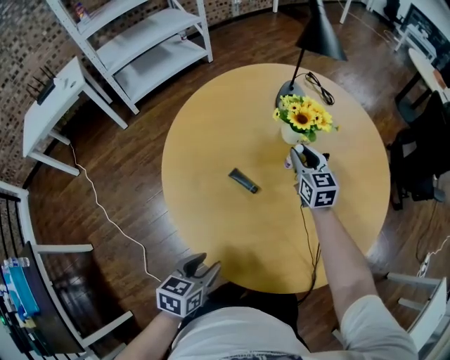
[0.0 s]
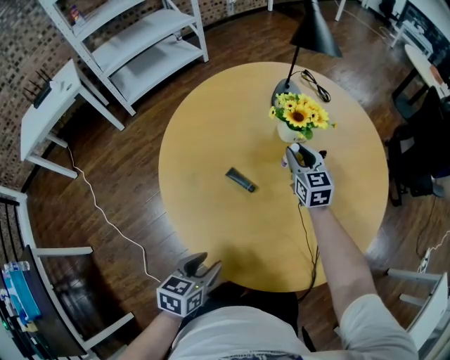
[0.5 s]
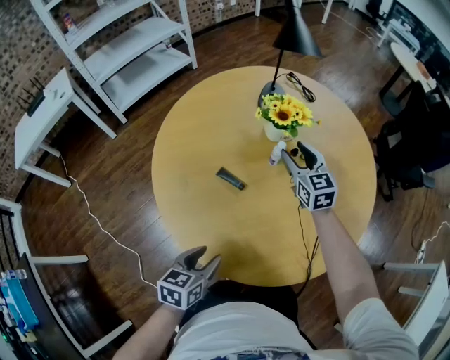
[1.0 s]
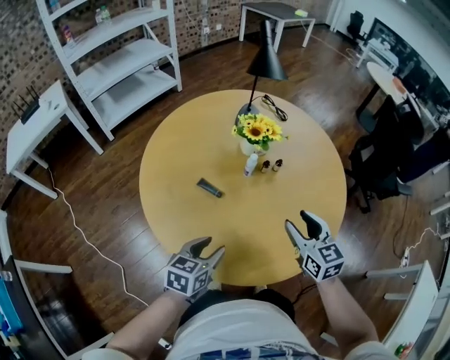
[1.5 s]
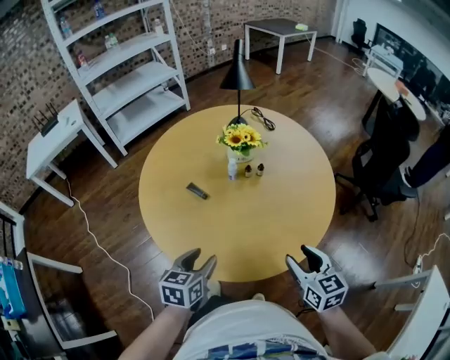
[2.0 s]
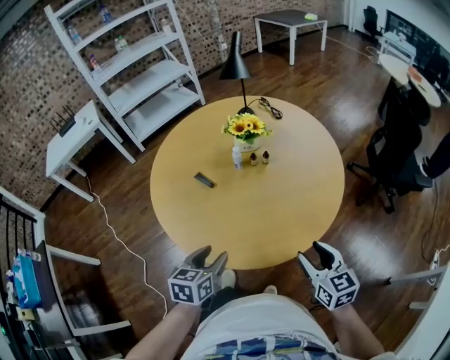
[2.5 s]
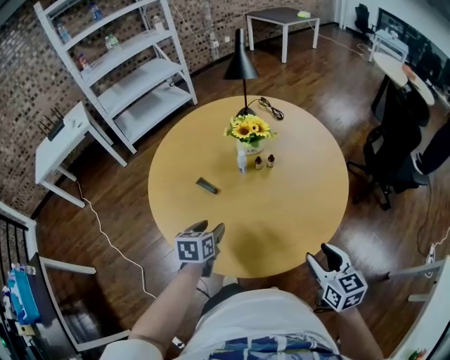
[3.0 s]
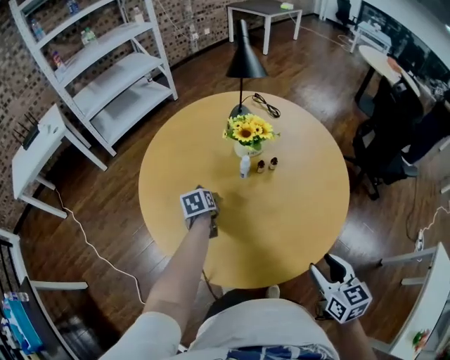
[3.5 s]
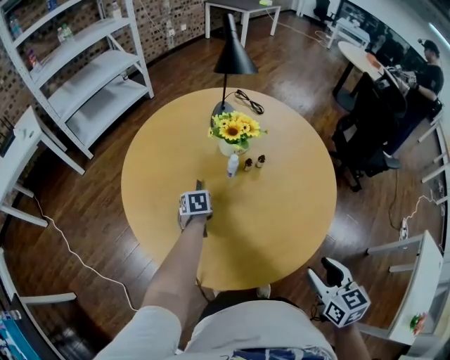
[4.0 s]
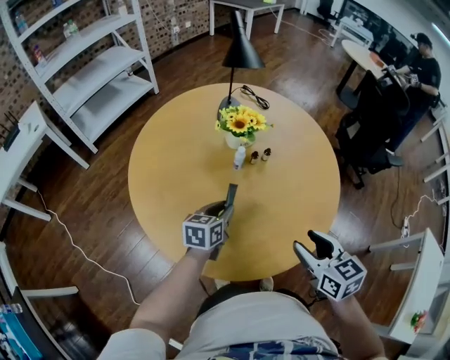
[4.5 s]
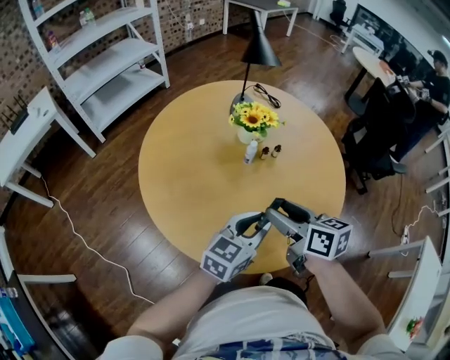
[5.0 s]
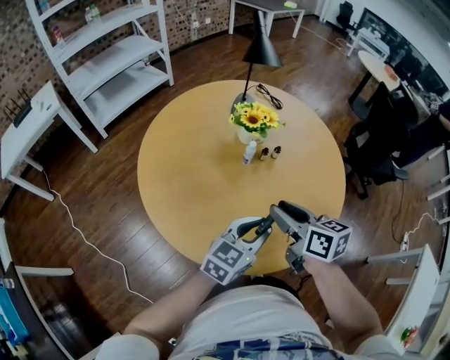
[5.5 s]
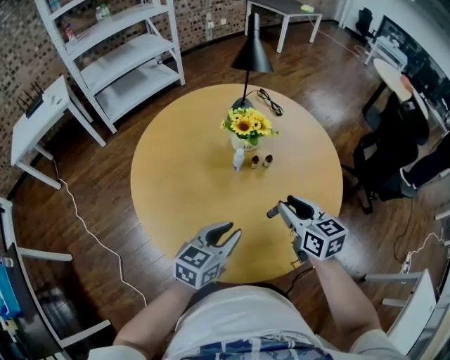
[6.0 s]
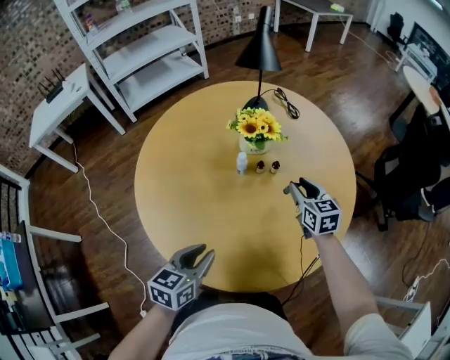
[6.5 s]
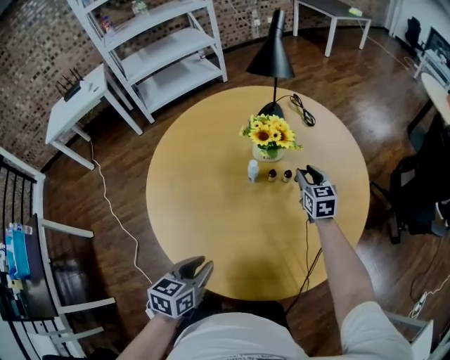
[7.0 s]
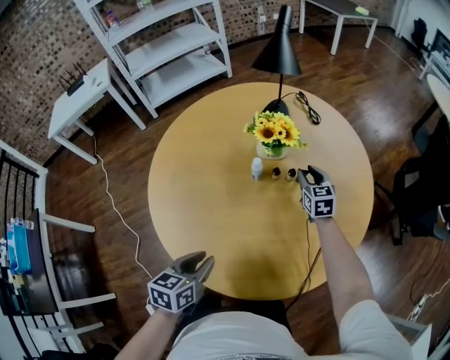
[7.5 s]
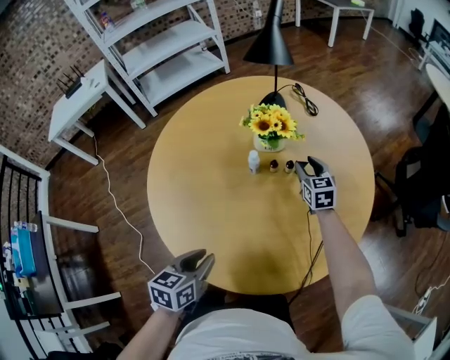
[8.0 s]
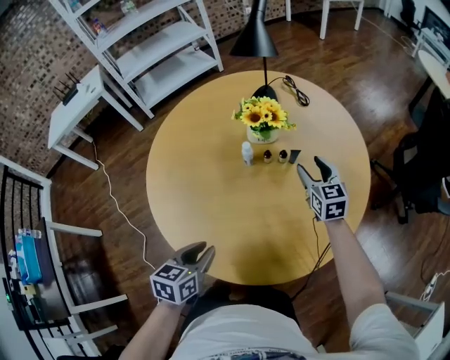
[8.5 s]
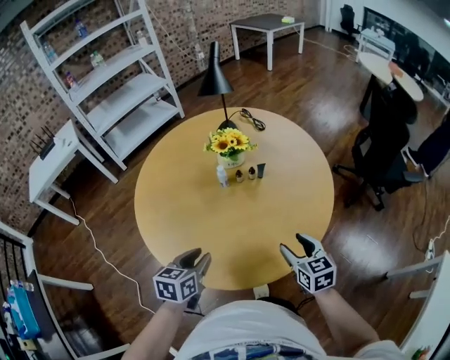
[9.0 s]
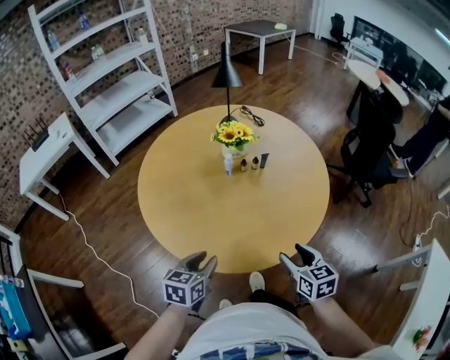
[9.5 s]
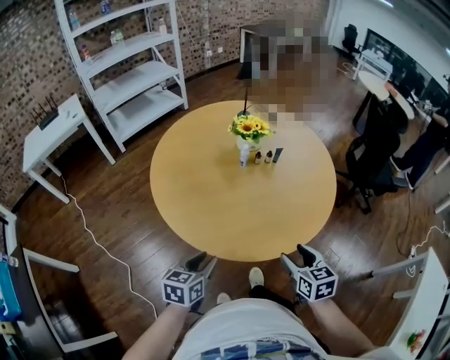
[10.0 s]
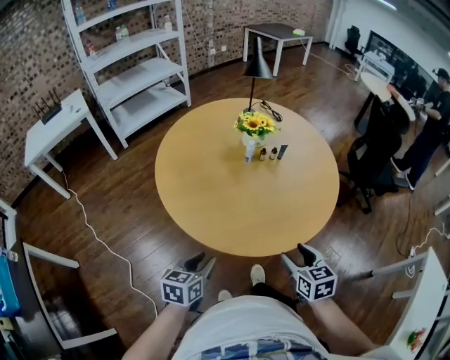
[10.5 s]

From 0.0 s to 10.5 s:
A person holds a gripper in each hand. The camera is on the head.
From 0.0 s to 2.0 s: The right gripper travels backward and to the right by some 50 cm, and opens, while the left gripper heads to the right and upward, covering roughly 20 cm.
From 2.0 s to 4.0 s: The right gripper shifts about 5 cm to the left, while the left gripper is displaced forward and downward by roughly 35 cm, changes its angle by some 20 degrees, and closes.
From 4.0 s to 6.5 s: The right gripper is displaced forward by about 35 cm, and swivels some 20 degrees; the left gripper goes about 30 cm backward, upward and to the right, and changes its angle by approximately 30 degrees.
From 6.5 s to 8.5 s: The right gripper reaches approximately 10 cm forward, then returns, and opens its fingers.
From 8.5 s to 10.5 s: The left gripper shifts roughly 25 cm backward and to the left; the right gripper shifts about 50 cm backward.

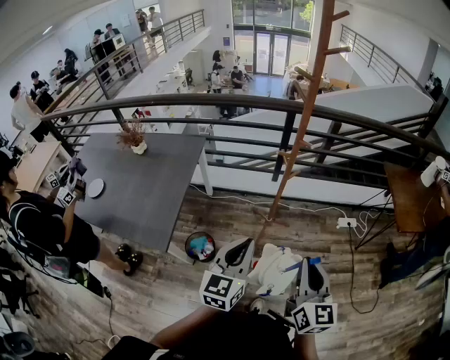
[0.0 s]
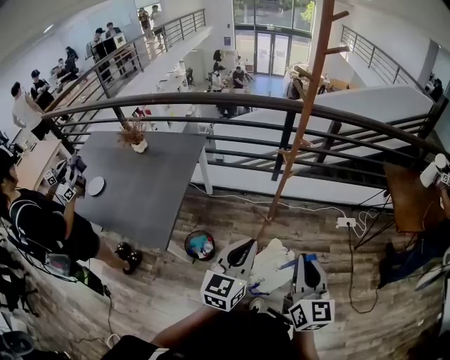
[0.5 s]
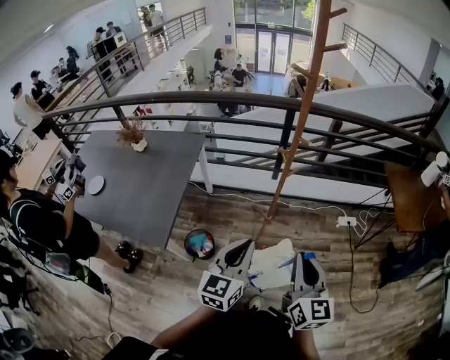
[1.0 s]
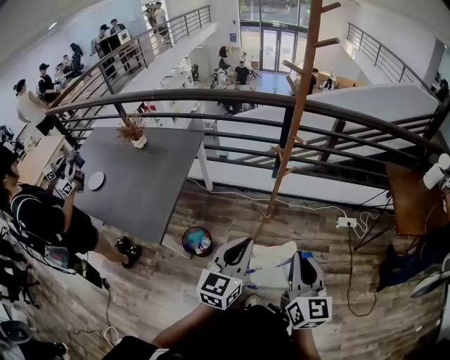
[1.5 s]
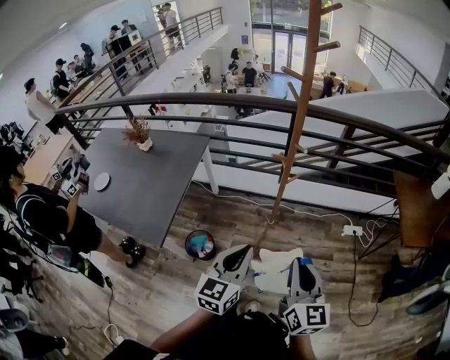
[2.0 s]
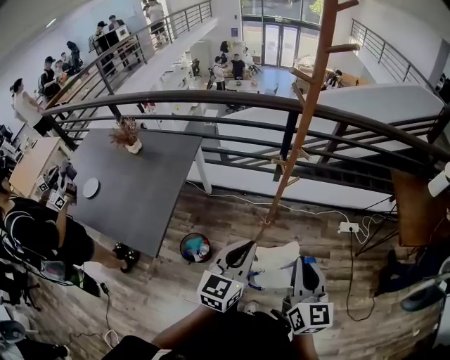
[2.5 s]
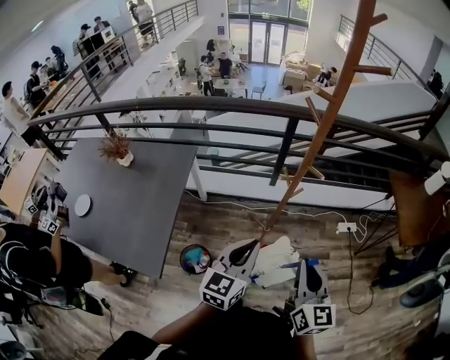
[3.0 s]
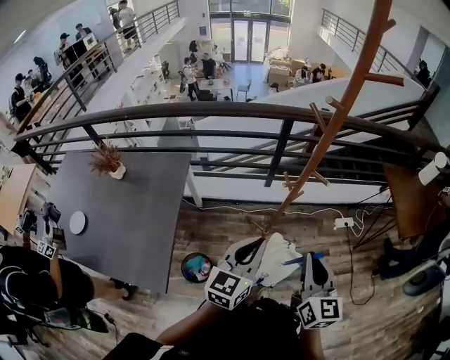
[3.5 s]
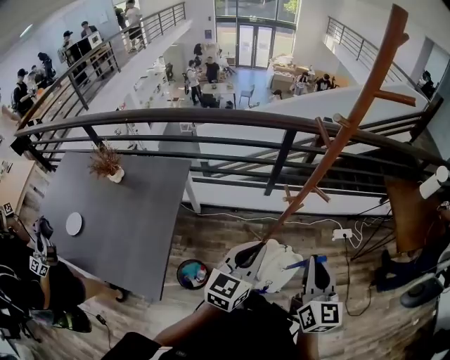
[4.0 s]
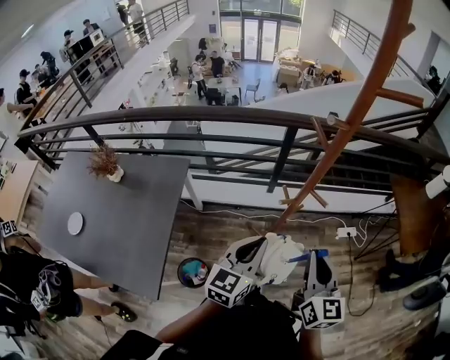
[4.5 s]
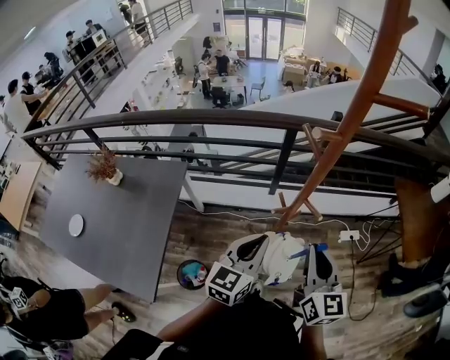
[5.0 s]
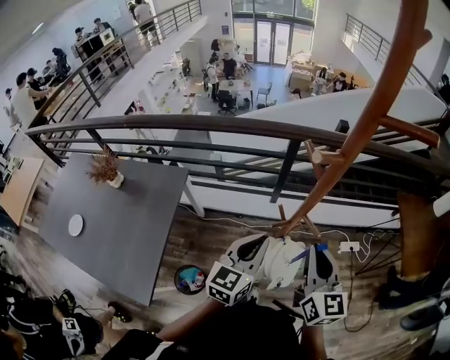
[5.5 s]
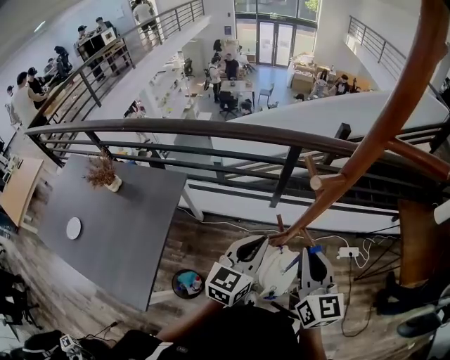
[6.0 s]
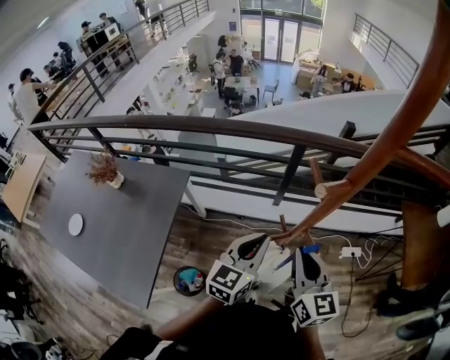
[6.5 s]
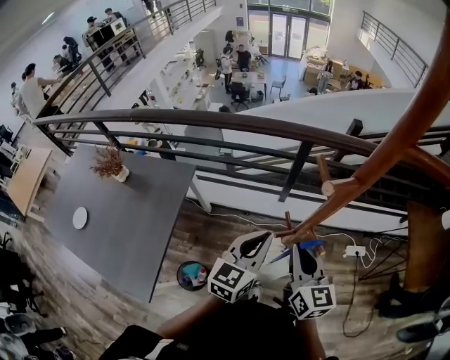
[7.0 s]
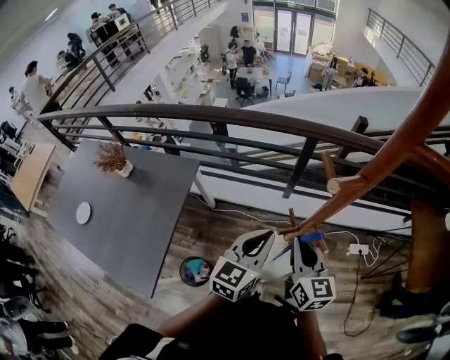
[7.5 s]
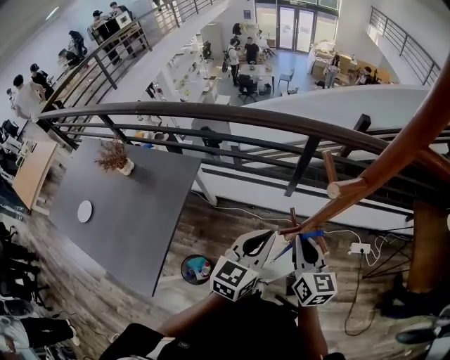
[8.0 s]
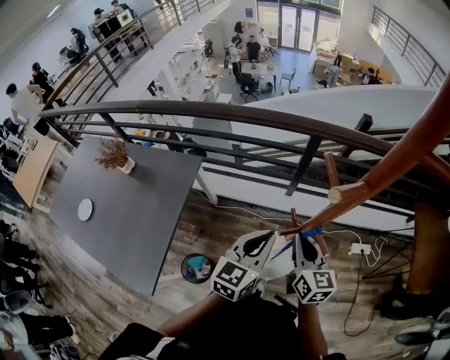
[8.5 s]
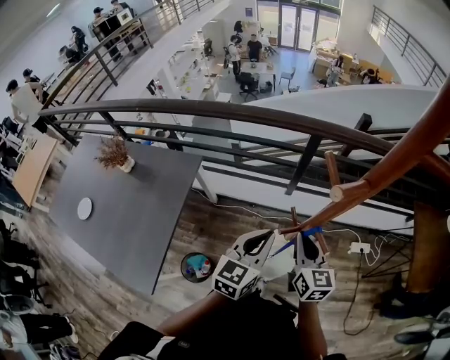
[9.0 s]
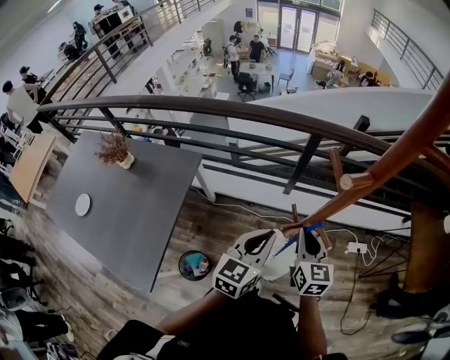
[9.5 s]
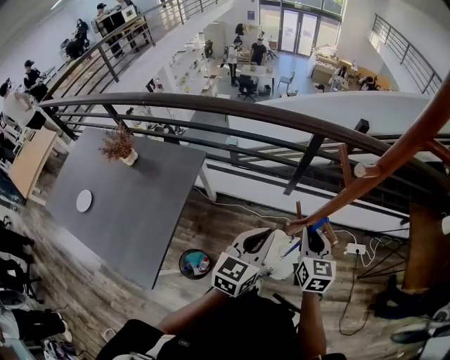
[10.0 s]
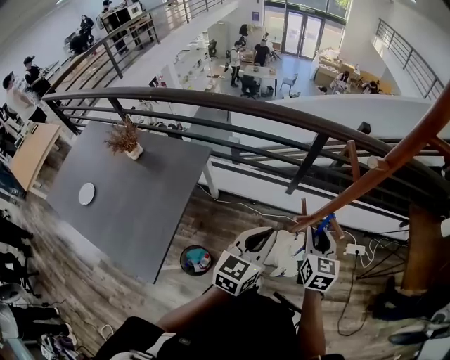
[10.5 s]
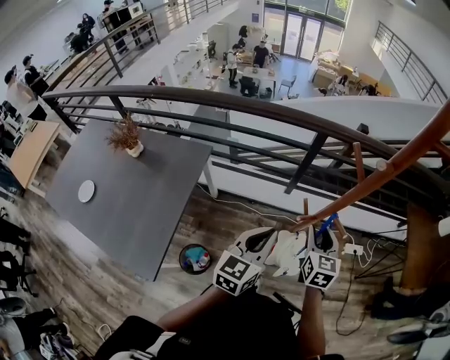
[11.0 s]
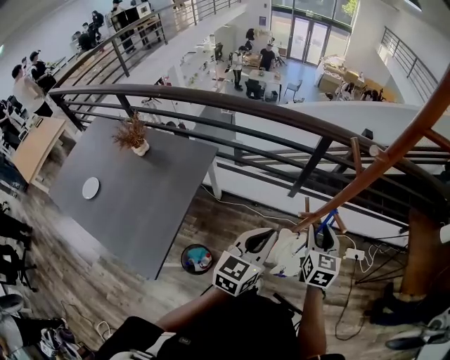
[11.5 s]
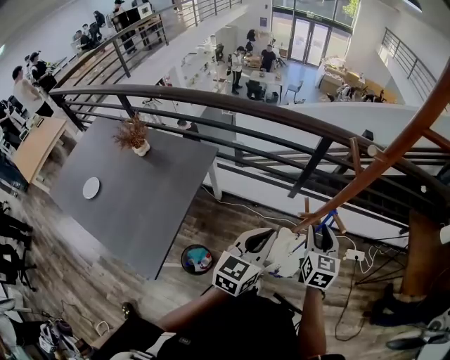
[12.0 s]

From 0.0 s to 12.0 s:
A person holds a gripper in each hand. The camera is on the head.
From 0.0 s to 2.0 s: The right gripper changes place by about 5 cm; the left gripper moves to the right, approximately 5 cm.
From 2.0 s to 4.0 s: The two grippers go about 20 cm forward and to the left.
From 4.0 s to 6.0 s: Both grippers move forward, about 15 cm.
From 6.0 s to 8.0 s: The right gripper heads downward, covering roughly 10 cm.
From 8.0 s to 10.0 s: The grippers stay close to where they were, moving slightly.
From 10.0 s to 12.0 s: The right gripper opens up.

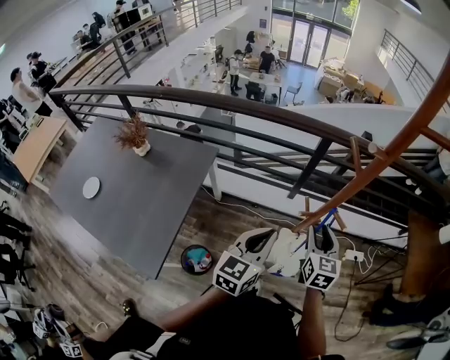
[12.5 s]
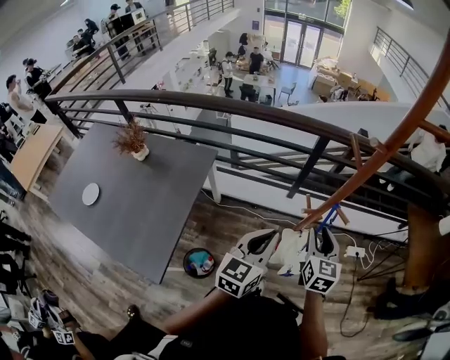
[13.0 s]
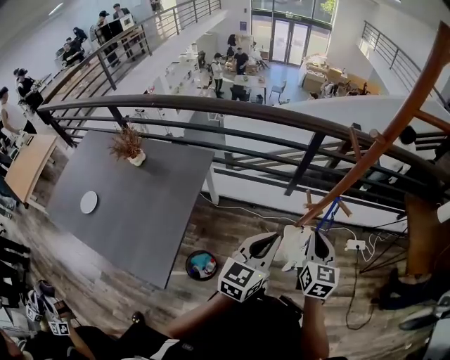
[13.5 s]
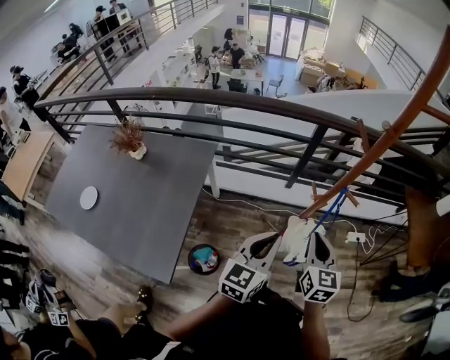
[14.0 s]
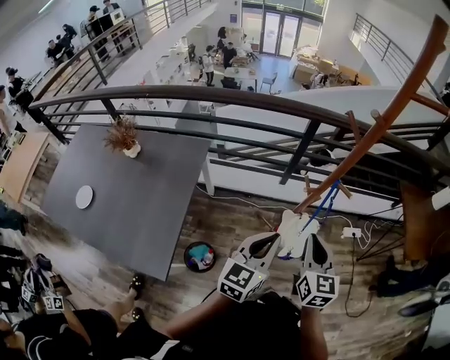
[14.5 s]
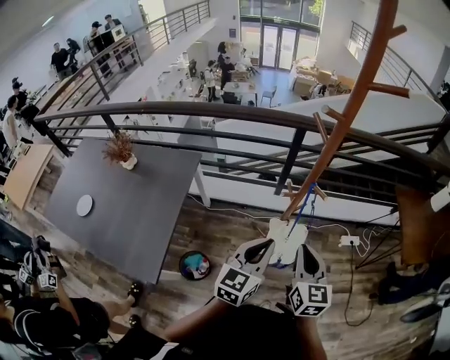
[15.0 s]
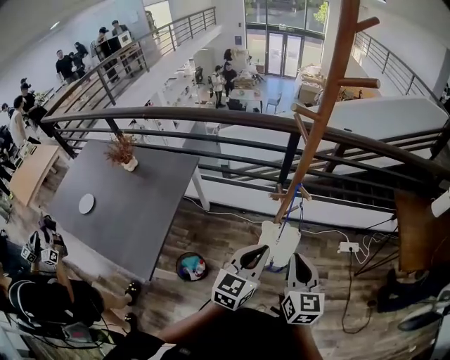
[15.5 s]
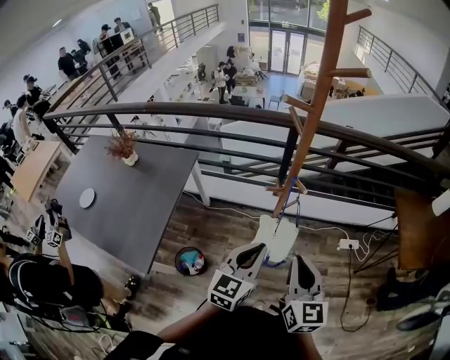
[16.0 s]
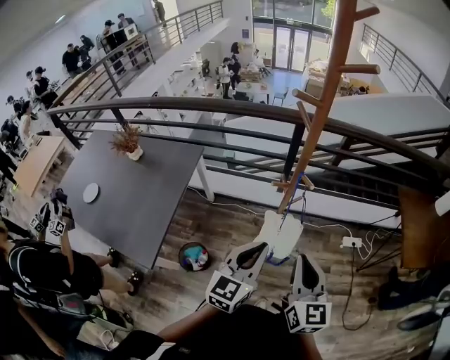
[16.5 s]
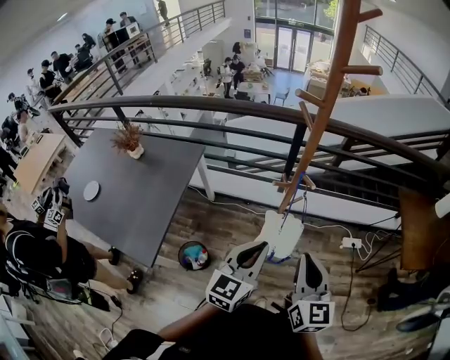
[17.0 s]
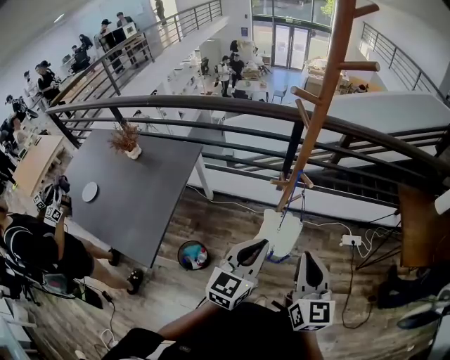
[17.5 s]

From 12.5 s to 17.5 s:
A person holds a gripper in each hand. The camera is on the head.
From 12.5 s to 15.0 s: The left gripper heads backward and to the right, covering some 10 cm. Meanwhile the right gripper goes about 15 cm backward, and closes its fingers.
From 15.0 s to 17.5 s: The right gripper heads backward and to the right, covering approximately 10 cm; the left gripper shifts by about 5 cm.
